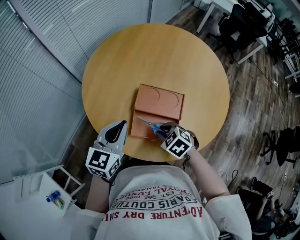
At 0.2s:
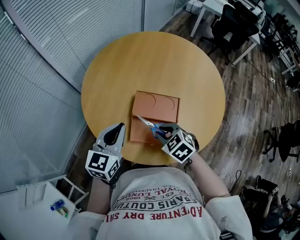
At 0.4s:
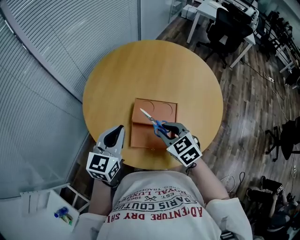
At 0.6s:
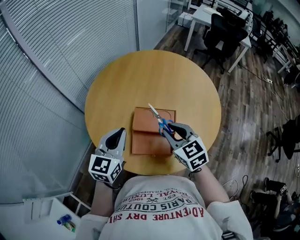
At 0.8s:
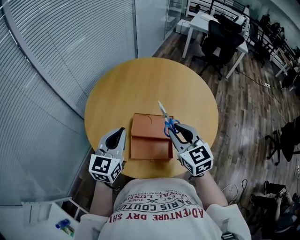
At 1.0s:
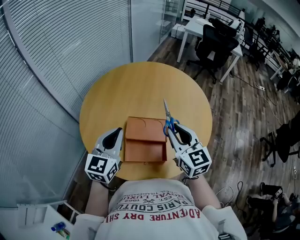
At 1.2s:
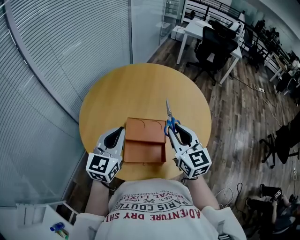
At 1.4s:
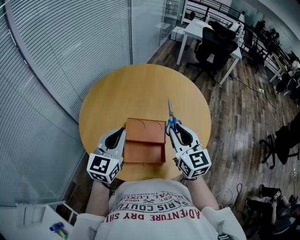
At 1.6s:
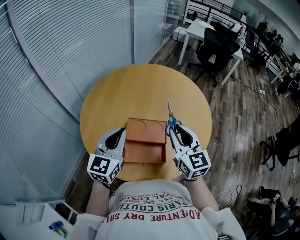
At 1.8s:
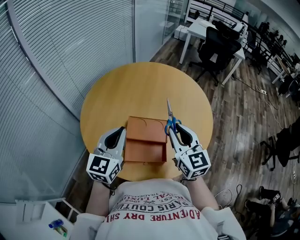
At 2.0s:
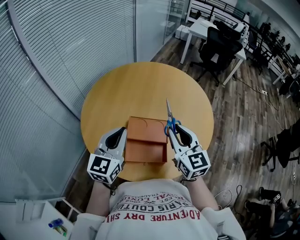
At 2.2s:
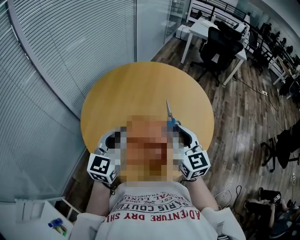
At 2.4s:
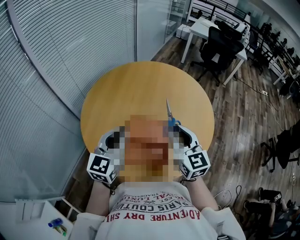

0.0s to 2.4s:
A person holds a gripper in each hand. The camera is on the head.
0.0s to 1.2s: The right gripper goes some 25 cm upward and to the right, and points its fingers some 50 degrees further upward, while the left gripper moves upward and to the right, about 10 cm.
1.2s to 2.4s: Both grippers stay put.

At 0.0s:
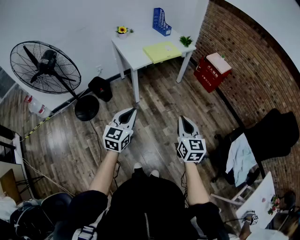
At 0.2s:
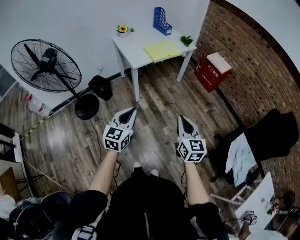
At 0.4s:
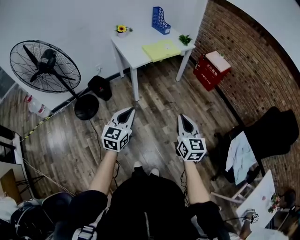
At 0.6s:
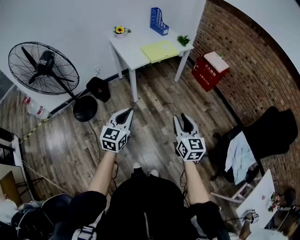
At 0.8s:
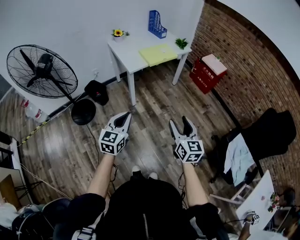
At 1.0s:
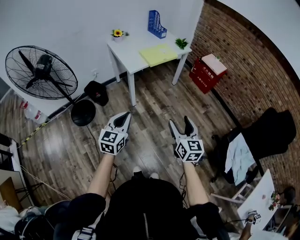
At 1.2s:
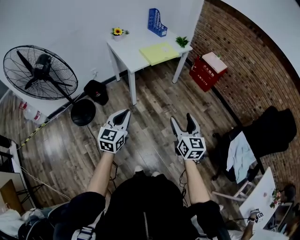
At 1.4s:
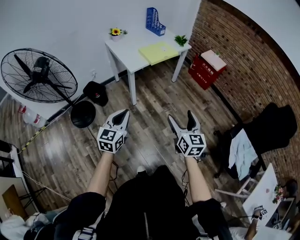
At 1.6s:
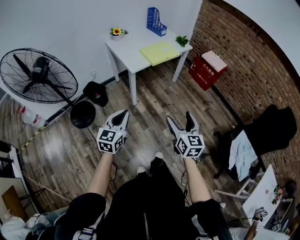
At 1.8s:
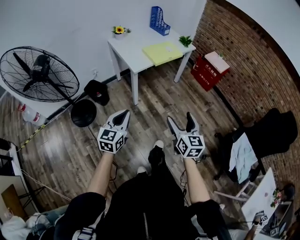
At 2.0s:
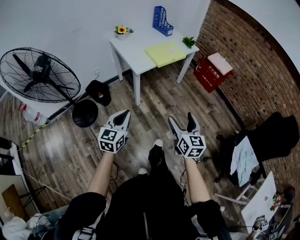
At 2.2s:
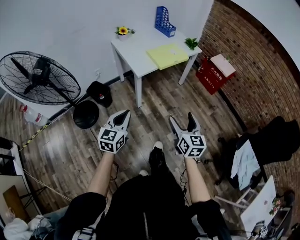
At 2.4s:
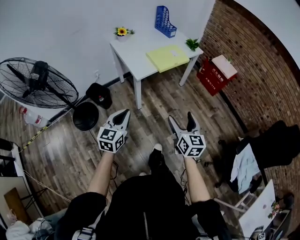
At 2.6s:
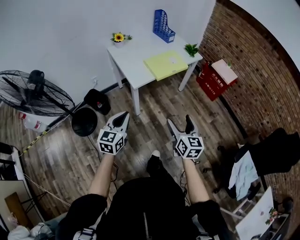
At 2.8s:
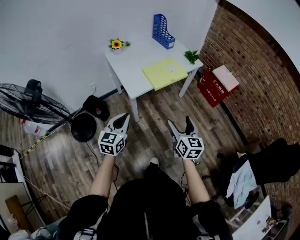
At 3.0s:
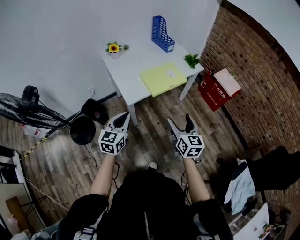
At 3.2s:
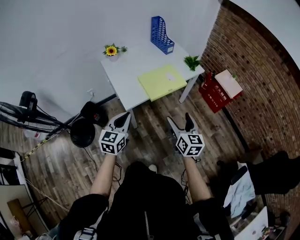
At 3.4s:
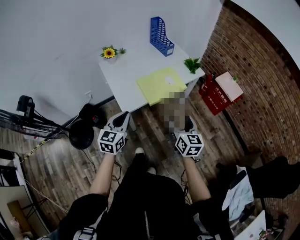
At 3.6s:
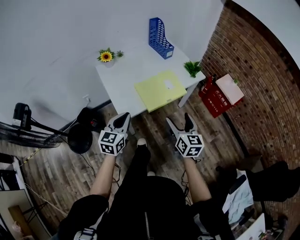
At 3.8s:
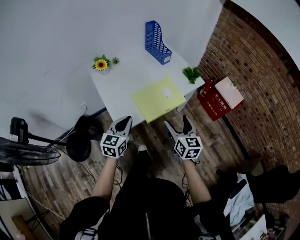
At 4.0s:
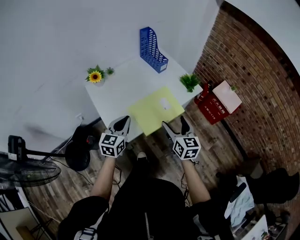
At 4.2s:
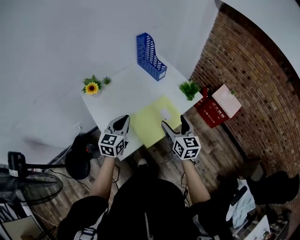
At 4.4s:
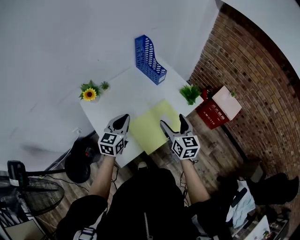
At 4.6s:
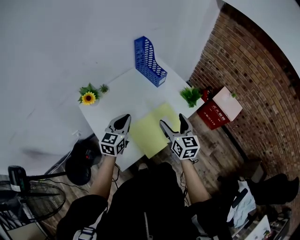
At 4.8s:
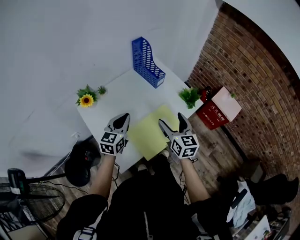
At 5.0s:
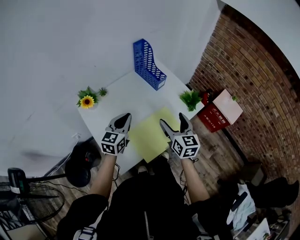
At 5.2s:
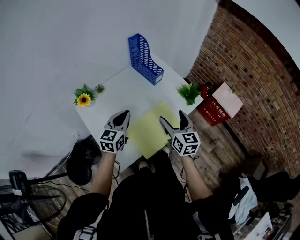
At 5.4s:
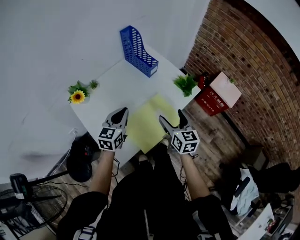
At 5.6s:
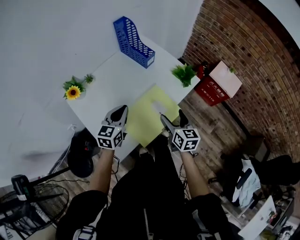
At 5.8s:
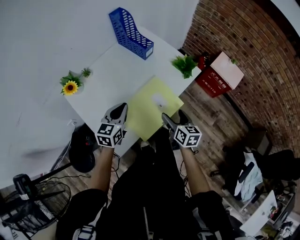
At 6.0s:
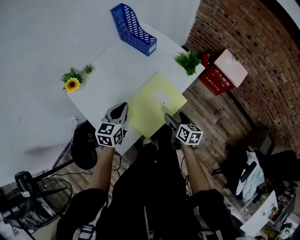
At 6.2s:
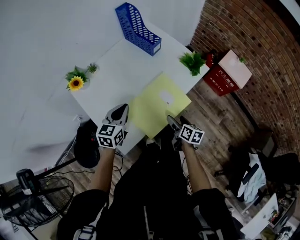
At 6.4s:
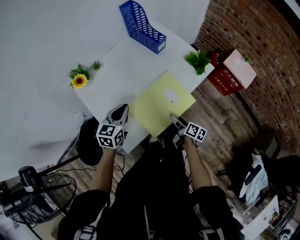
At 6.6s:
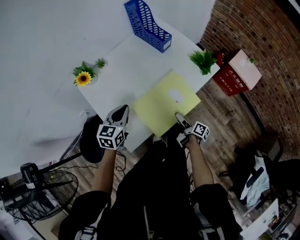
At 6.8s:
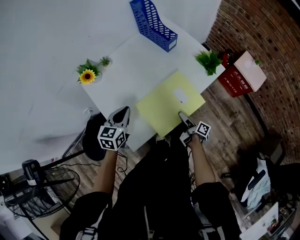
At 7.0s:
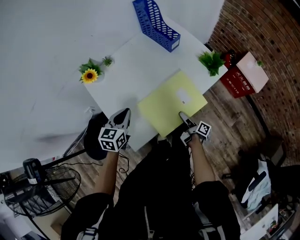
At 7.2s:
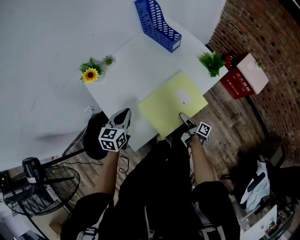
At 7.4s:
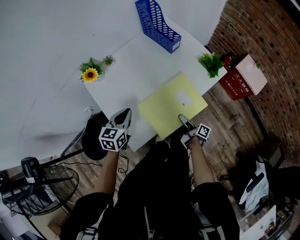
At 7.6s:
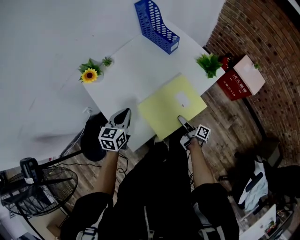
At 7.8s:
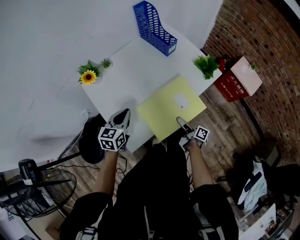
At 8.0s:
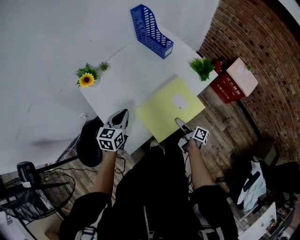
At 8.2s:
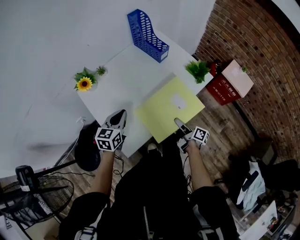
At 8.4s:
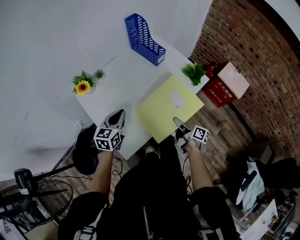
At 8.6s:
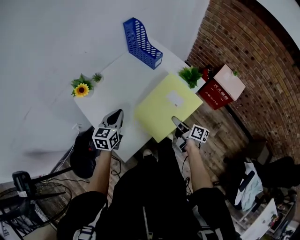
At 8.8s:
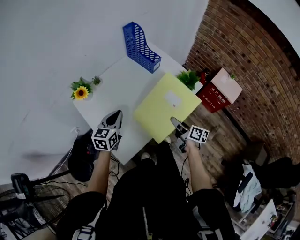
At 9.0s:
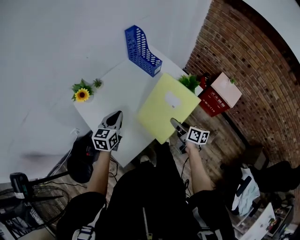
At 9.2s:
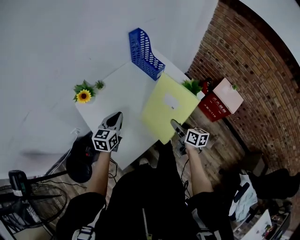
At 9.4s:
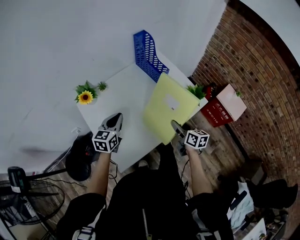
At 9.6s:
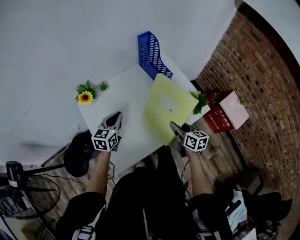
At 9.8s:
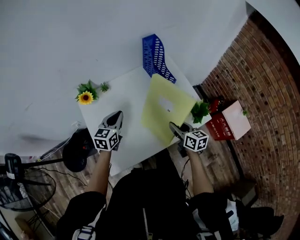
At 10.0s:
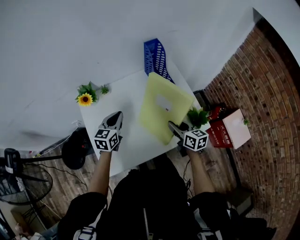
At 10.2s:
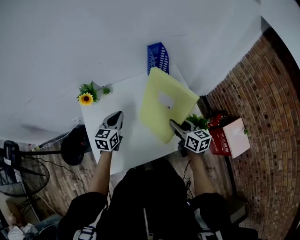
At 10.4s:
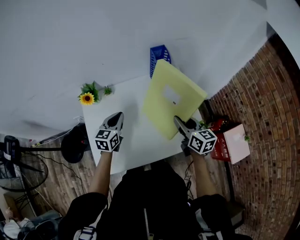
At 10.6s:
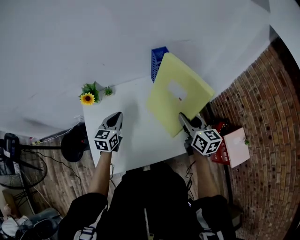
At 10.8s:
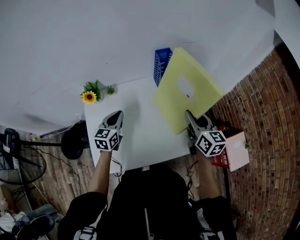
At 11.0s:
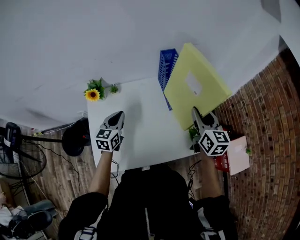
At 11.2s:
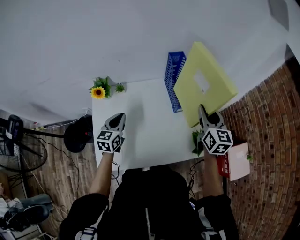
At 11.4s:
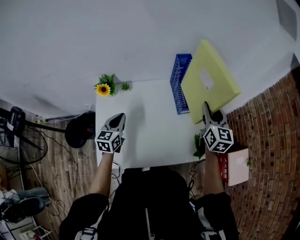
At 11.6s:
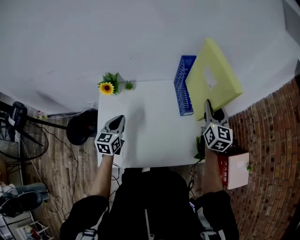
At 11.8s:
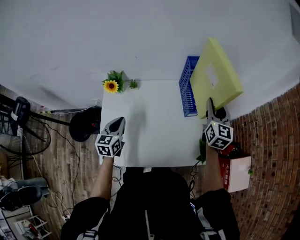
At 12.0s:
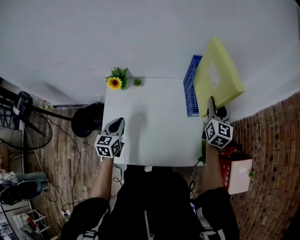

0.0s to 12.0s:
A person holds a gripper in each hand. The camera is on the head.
0.0s to 1.6s: Both grippers move to the left, about 10 cm. The right gripper opens up.
1.6s to 3.0s: The grippers both shift forward by some 30 cm.
3.0s to 4.4s: Both grippers move forward, about 40 cm.
4.4s to 6.0s: The left gripper goes roughly 10 cm downward. Meanwhile the right gripper travels downward by some 20 cm, and swivels roughly 30 degrees.
6.0s to 7.6s: The left gripper goes approximately 10 cm to the left; the right gripper is displaced downward by some 10 cm, twists about 40 degrees clockwise, seen from behind, and closes.
7.6s to 9.0s: The right gripper travels upward by approximately 15 cm, and rotates some 40 degrees, while the left gripper travels upward and forward by roughly 5 cm.
9.0s to 10.4s: The left gripper goes roughly 10 cm forward, and changes its angle by some 30 degrees. Meanwhile the right gripper moves forward and upward, about 25 cm, and rotates roughly 40 degrees.
10.4s to 12.0s: The left gripper travels to the left and backward by some 10 cm, and rotates about 20 degrees; the right gripper heads forward, covering some 15 cm, and changes its angle by roughly 30 degrees.

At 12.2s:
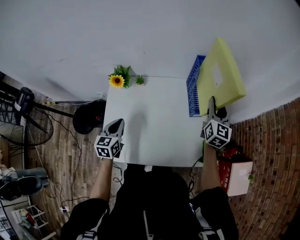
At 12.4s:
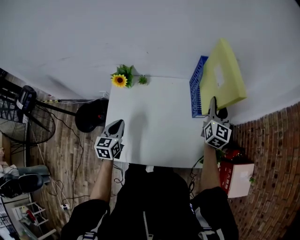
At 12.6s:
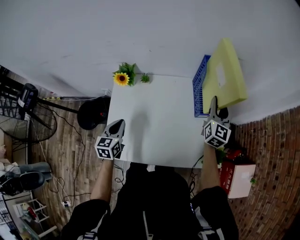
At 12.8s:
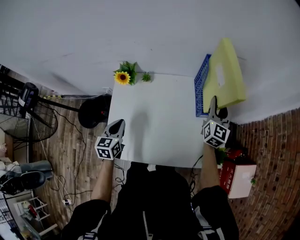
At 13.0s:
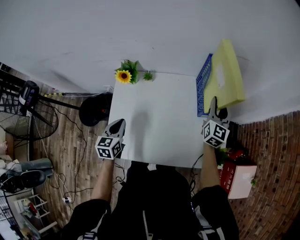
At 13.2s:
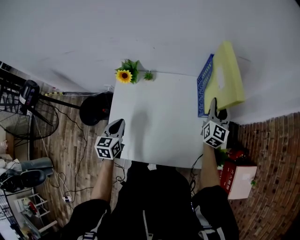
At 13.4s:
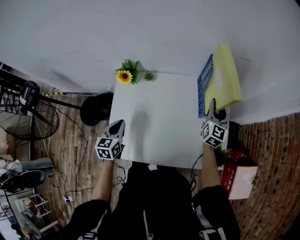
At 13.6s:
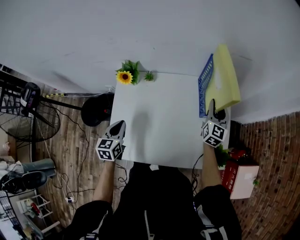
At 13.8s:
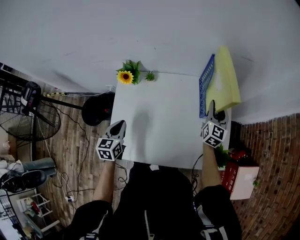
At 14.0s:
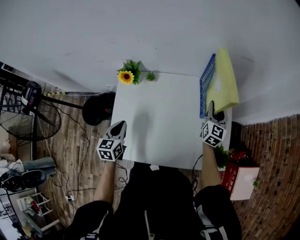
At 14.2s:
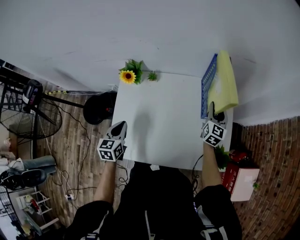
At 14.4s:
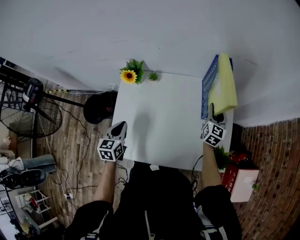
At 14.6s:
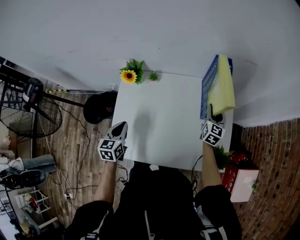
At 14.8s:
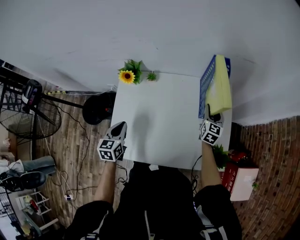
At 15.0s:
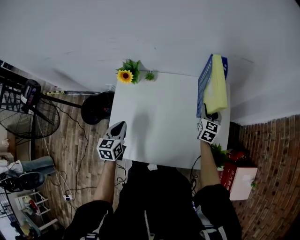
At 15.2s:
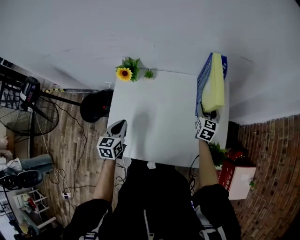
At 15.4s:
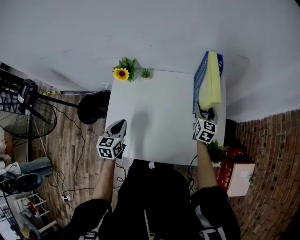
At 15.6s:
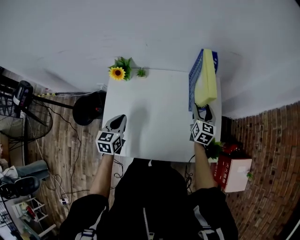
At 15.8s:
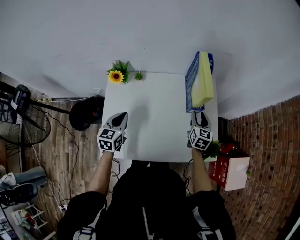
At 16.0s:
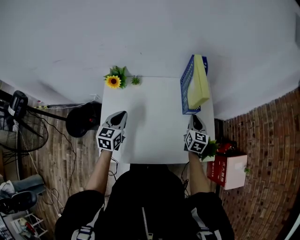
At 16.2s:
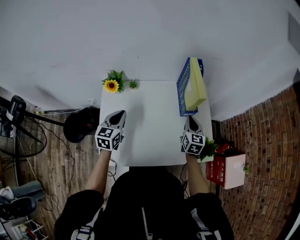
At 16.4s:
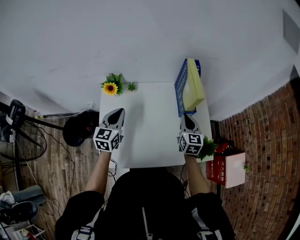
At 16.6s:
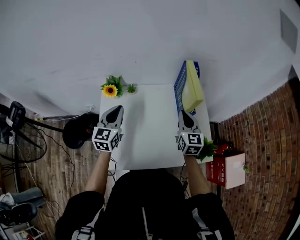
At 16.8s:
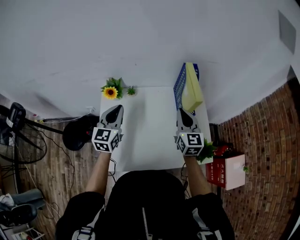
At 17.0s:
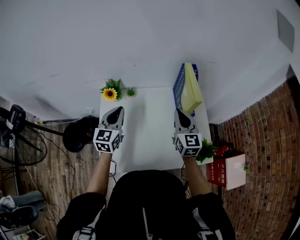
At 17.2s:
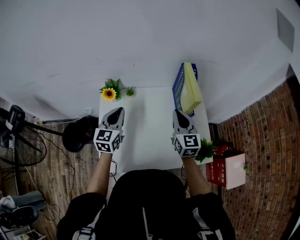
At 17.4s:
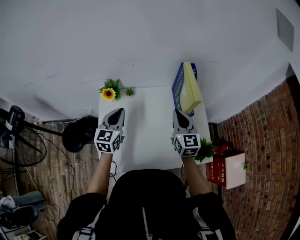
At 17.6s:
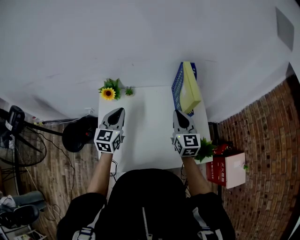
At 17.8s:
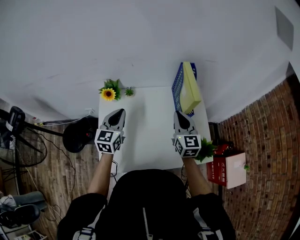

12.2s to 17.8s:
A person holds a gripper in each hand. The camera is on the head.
12.2s to 13.6s: The right gripper goes about 10 cm downward.
13.6s to 15.0s: The right gripper moves downward, some 10 cm.
15.0s to 16.4s: The left gripper heads upward and forward, covering roughly 10 cm, and turns by approximately 20 degrees; the right gripper heads backward, upward and to the left, covering about 15 cm, and closes its fingers.
16.4s to 17.8s: The right gripper goes roughly 5 cm upward.

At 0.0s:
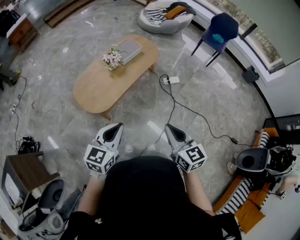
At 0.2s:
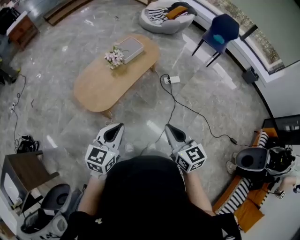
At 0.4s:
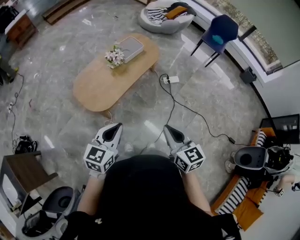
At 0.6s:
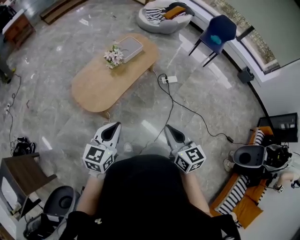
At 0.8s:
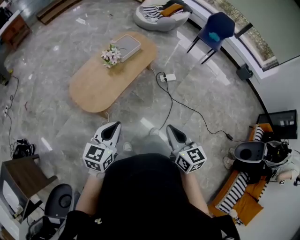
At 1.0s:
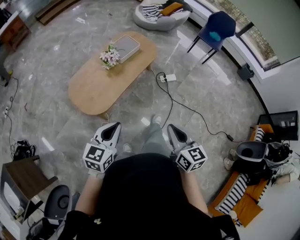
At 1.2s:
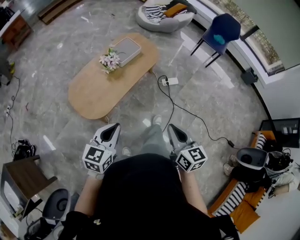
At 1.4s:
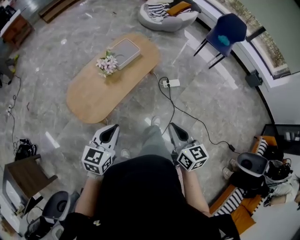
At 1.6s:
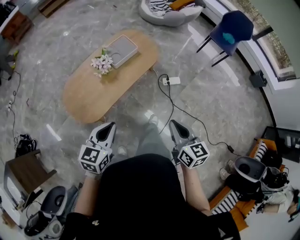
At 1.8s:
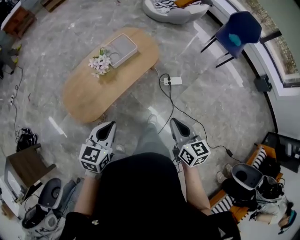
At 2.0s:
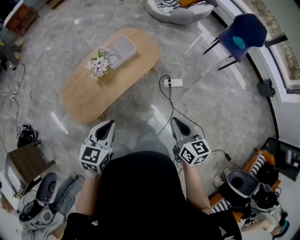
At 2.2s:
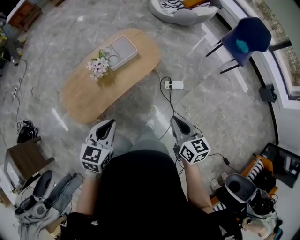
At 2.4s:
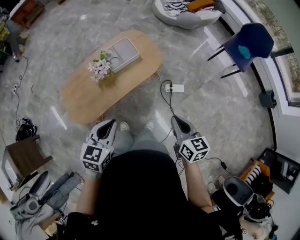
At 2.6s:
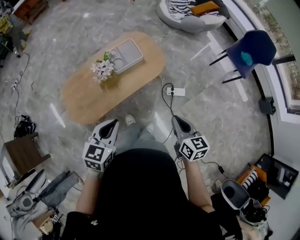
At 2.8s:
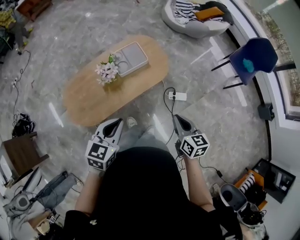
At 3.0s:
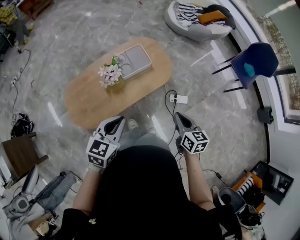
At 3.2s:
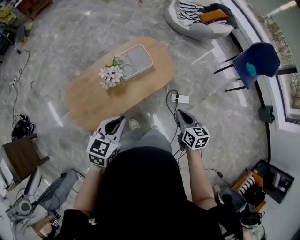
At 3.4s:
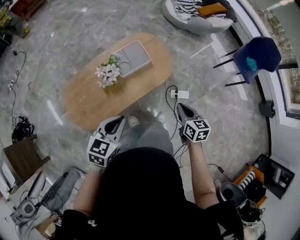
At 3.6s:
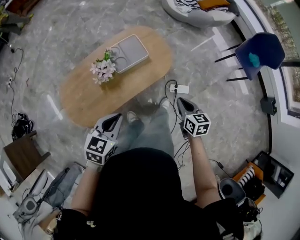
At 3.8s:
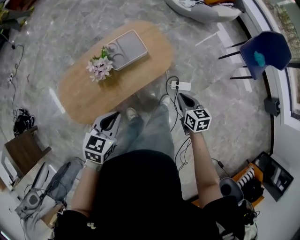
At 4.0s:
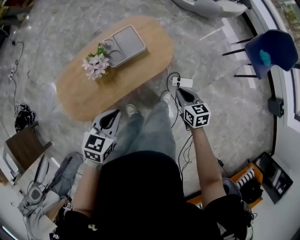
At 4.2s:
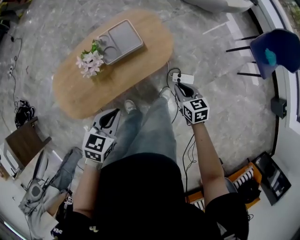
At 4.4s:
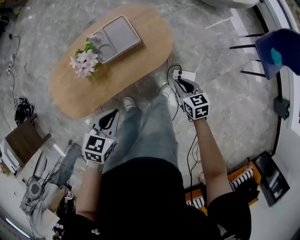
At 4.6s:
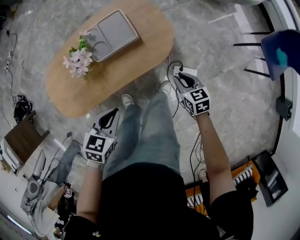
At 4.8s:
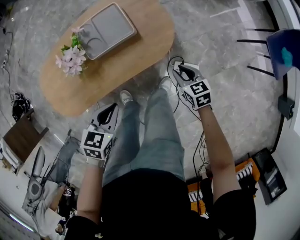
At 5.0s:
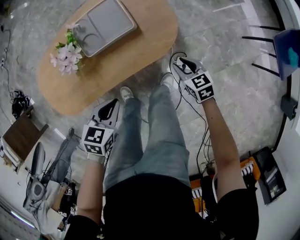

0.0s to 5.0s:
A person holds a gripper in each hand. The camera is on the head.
0.0s to 1.6s: The grippers both shift forward by approximately 25 cm.
1.6s to 3.4s: The right gripper shifts about 35 cm forward and downward. Meanwhile the left gripper goes approximately 20 cm forward.
3.4s to 5.0s: The right gripper goes roughly 40 cm downward and forward, swivels some 30 degrees, and opens; the left gripper is displaced downward and to the right by roughly 30 cm, and swivels approximately 20 degrees.
